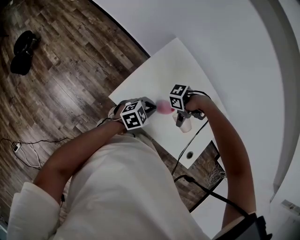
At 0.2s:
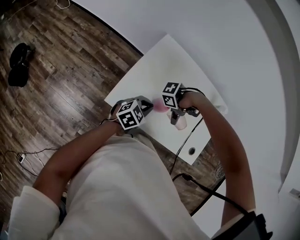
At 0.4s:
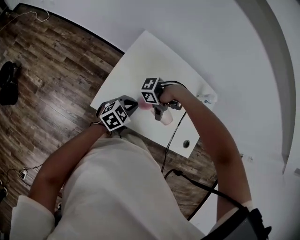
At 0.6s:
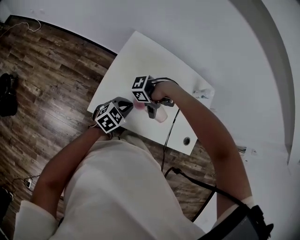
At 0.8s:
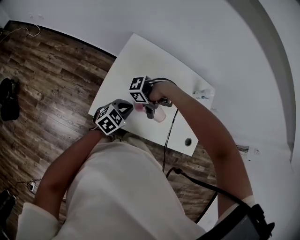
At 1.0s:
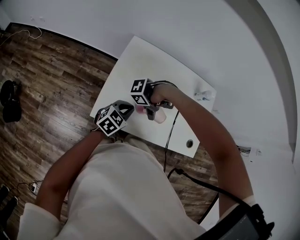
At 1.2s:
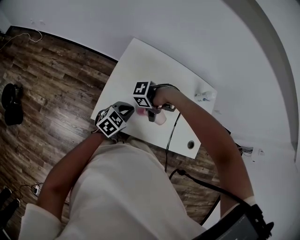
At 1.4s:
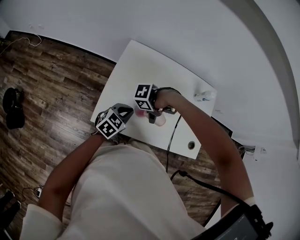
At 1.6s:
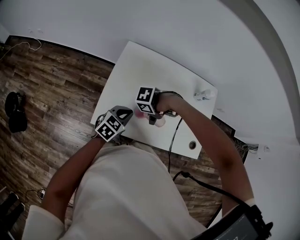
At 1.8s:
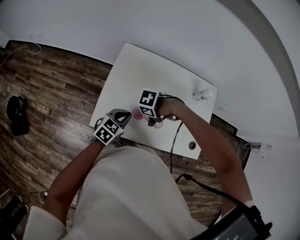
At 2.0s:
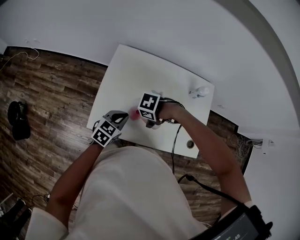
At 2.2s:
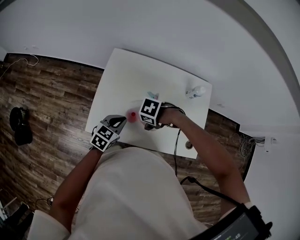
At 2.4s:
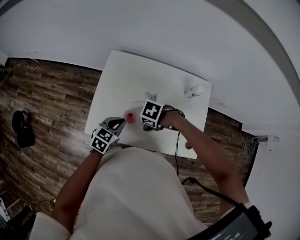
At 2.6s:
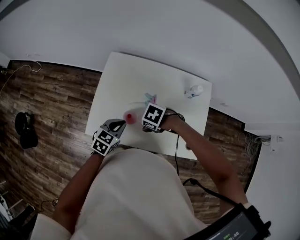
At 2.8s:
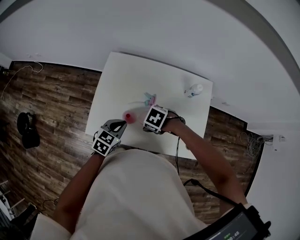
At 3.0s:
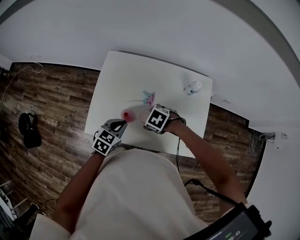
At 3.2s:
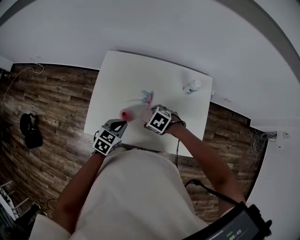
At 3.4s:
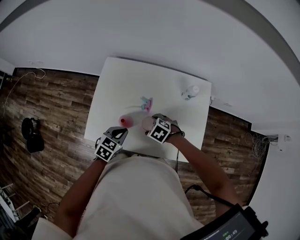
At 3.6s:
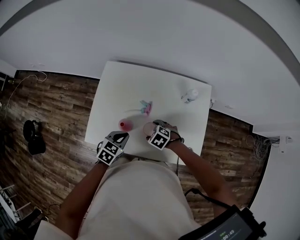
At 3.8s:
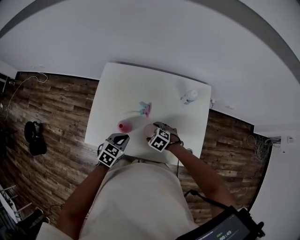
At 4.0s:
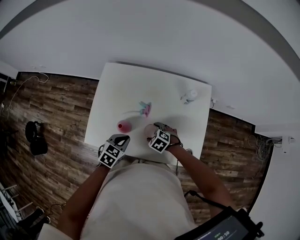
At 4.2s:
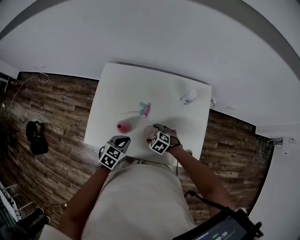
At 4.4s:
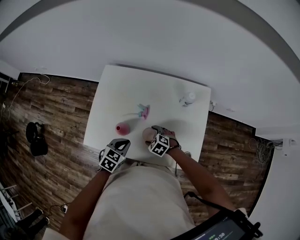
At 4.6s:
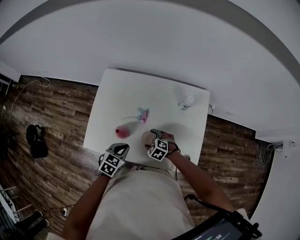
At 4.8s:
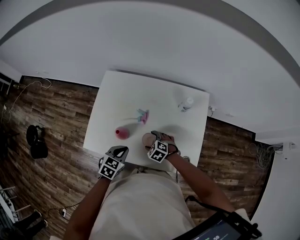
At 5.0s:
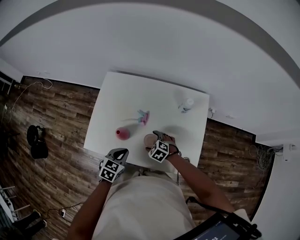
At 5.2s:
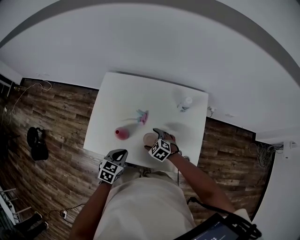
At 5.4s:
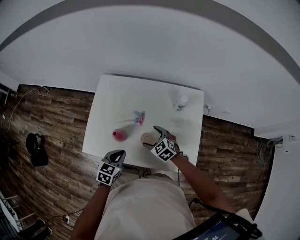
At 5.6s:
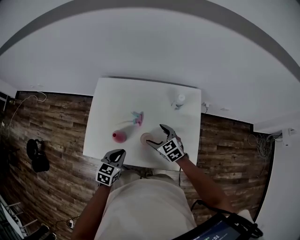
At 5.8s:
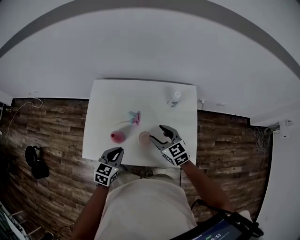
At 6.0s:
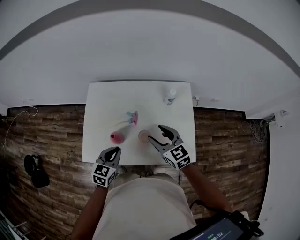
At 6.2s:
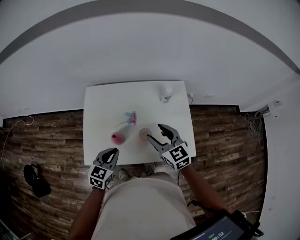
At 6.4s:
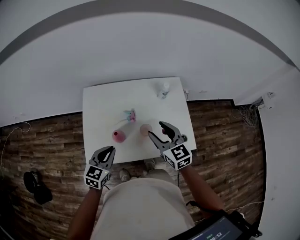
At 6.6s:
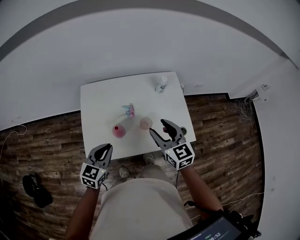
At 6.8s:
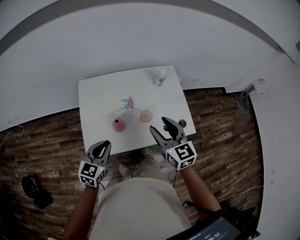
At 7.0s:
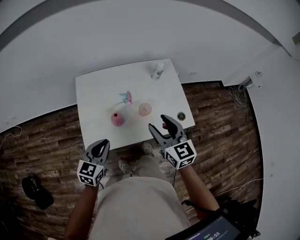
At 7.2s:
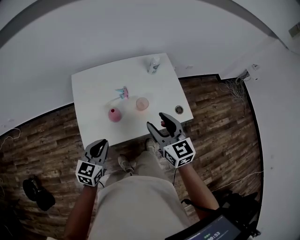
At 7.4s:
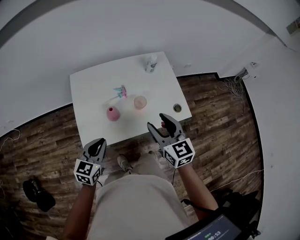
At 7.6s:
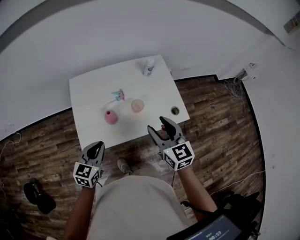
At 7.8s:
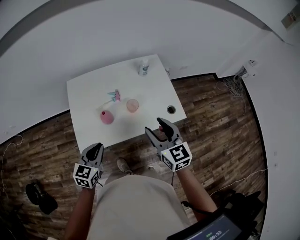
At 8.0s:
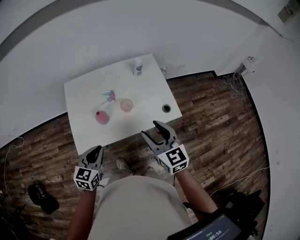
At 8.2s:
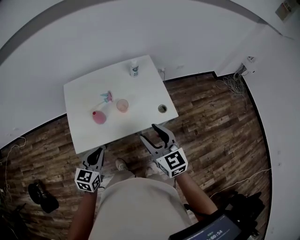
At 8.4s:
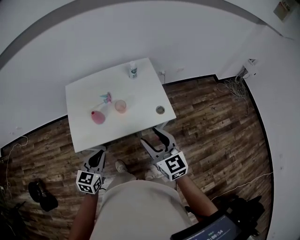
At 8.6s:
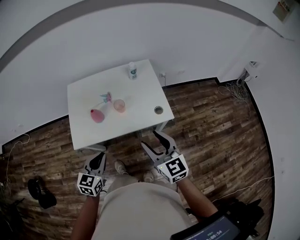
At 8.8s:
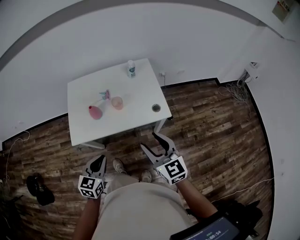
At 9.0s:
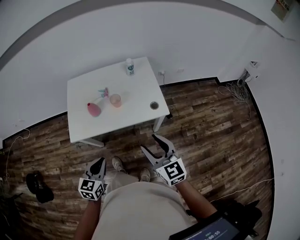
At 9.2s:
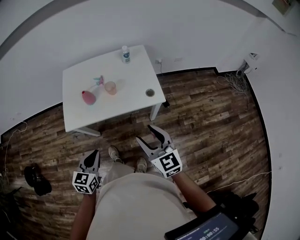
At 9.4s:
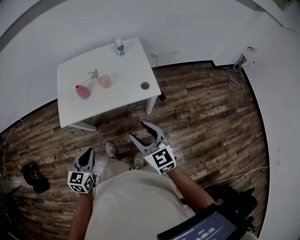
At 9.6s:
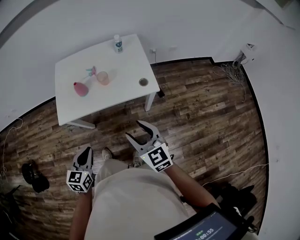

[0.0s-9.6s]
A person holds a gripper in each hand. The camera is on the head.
1.6s to 3.2s: The left gripper shifts by some 10 cm.
3.2s to 4.8s: The left gripper shifts by about 5 cm.
4.8s to 6.4s: The left gripper is displaced upward by roughly 10 cm, and rotates roughly 20 degrees.
6.4s to 8.0s: The left gripper moves some 15 cm.
8.0s to 9.6s: The left gripper changes place by about 25 cm.

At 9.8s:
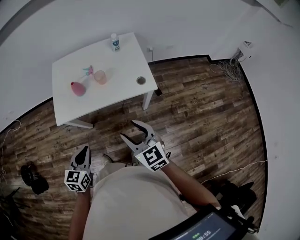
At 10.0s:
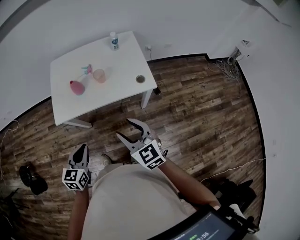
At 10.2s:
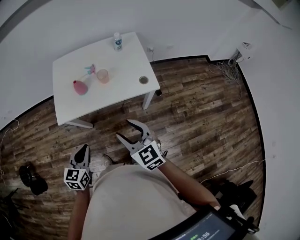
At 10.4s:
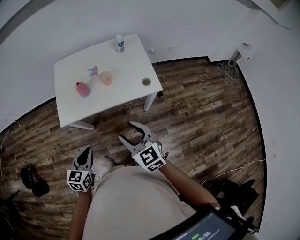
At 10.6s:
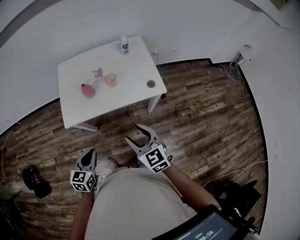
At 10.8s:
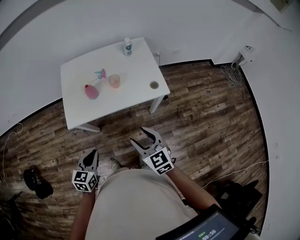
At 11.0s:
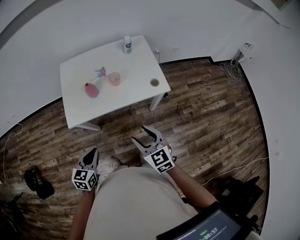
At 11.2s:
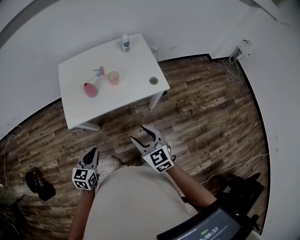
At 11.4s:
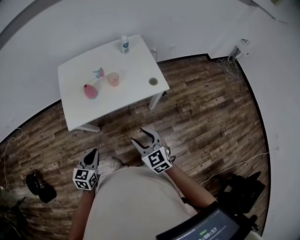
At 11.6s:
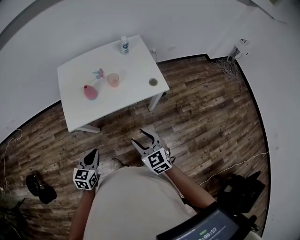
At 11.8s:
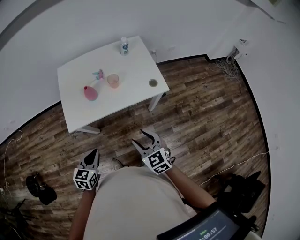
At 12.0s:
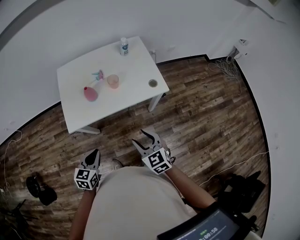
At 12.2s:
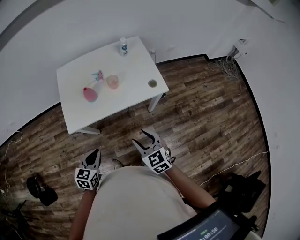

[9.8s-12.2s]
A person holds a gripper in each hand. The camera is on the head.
9.8s to 11.0s: The left gripper moves about 10 cm.

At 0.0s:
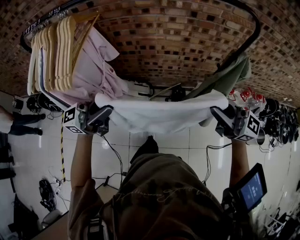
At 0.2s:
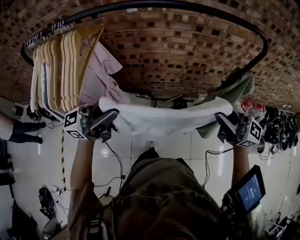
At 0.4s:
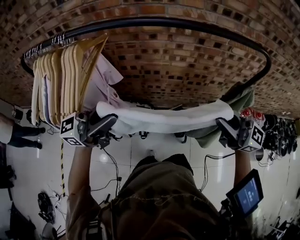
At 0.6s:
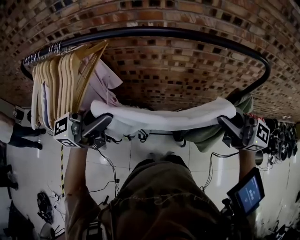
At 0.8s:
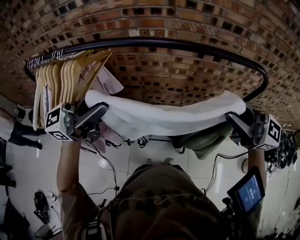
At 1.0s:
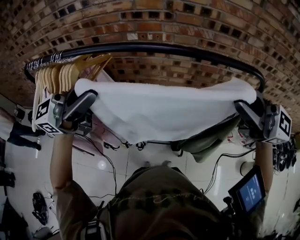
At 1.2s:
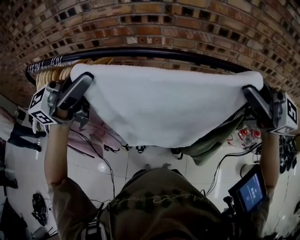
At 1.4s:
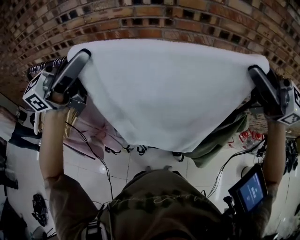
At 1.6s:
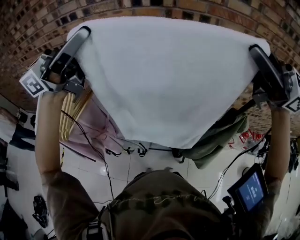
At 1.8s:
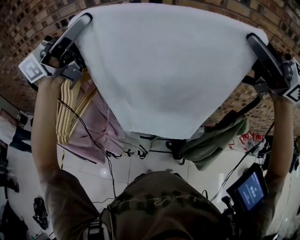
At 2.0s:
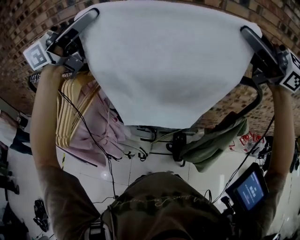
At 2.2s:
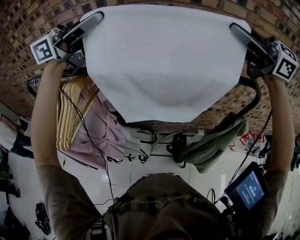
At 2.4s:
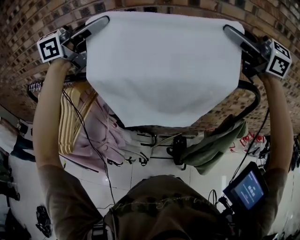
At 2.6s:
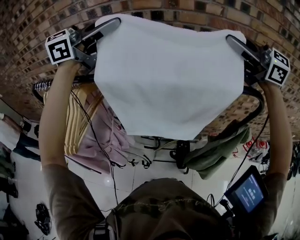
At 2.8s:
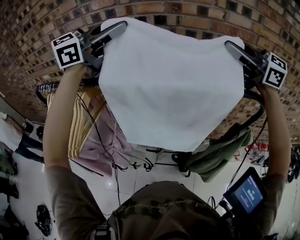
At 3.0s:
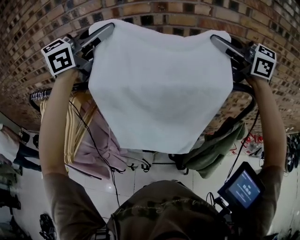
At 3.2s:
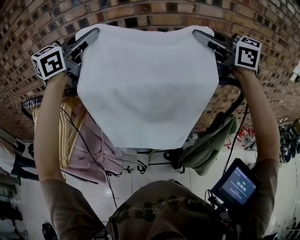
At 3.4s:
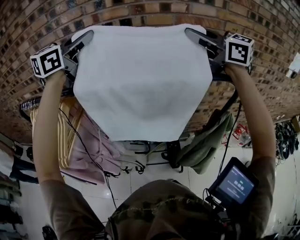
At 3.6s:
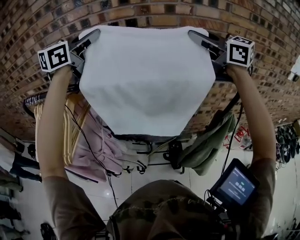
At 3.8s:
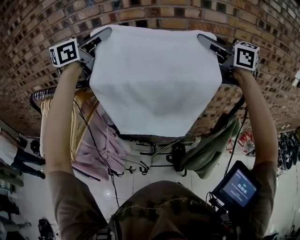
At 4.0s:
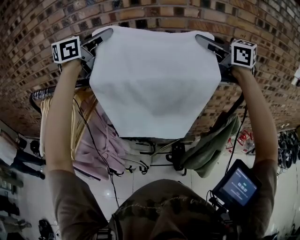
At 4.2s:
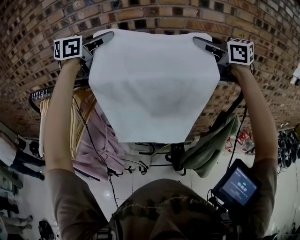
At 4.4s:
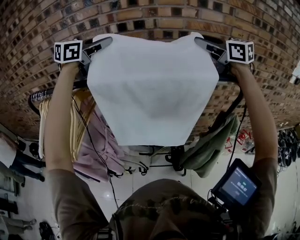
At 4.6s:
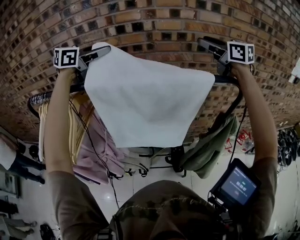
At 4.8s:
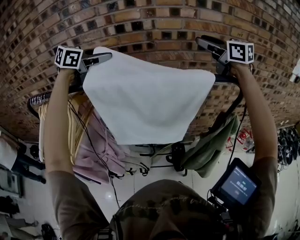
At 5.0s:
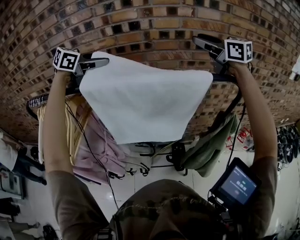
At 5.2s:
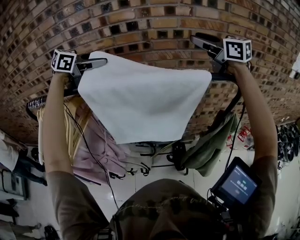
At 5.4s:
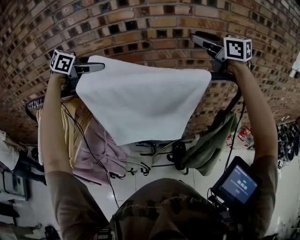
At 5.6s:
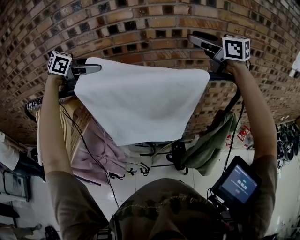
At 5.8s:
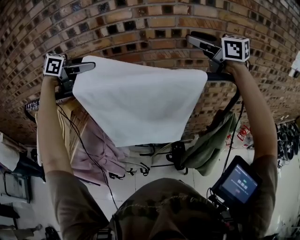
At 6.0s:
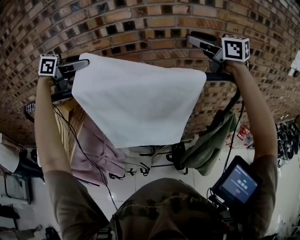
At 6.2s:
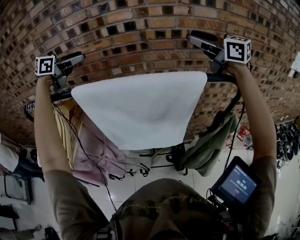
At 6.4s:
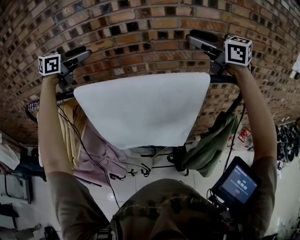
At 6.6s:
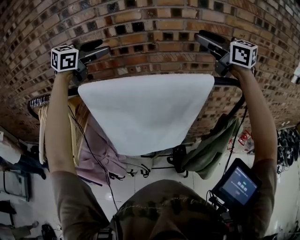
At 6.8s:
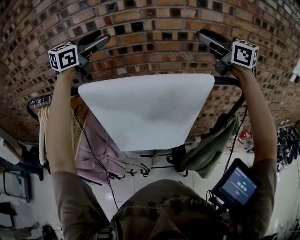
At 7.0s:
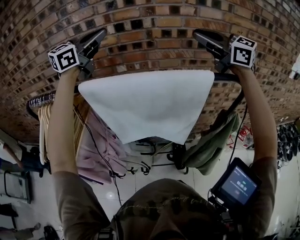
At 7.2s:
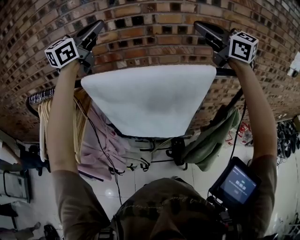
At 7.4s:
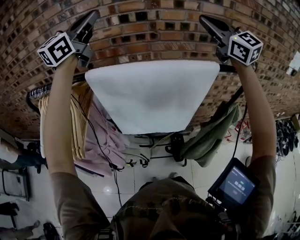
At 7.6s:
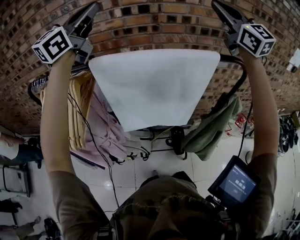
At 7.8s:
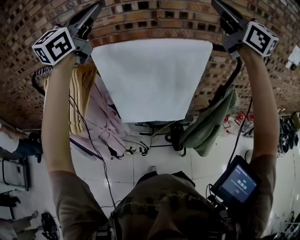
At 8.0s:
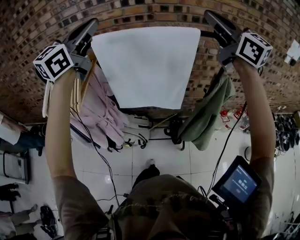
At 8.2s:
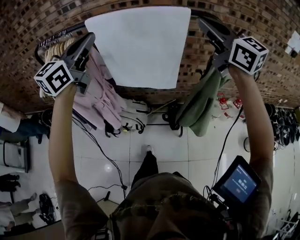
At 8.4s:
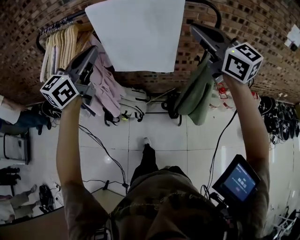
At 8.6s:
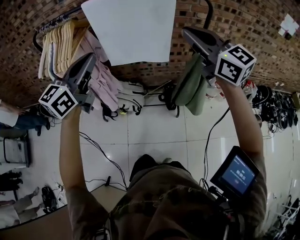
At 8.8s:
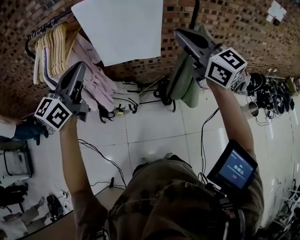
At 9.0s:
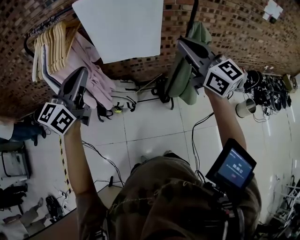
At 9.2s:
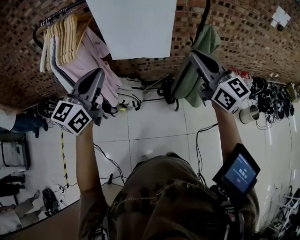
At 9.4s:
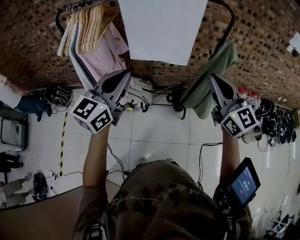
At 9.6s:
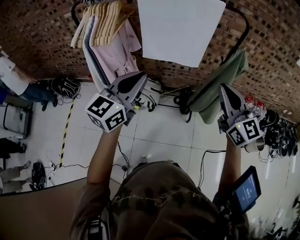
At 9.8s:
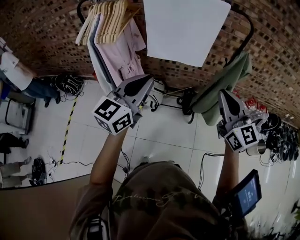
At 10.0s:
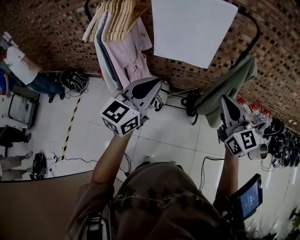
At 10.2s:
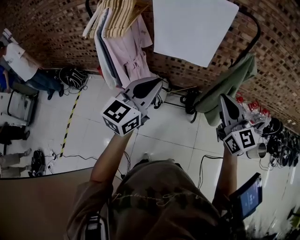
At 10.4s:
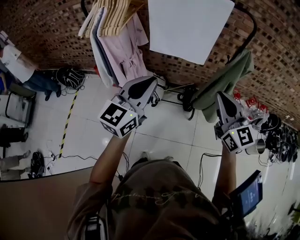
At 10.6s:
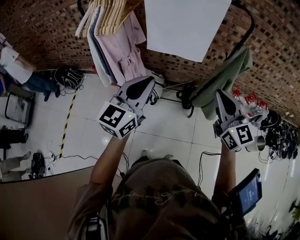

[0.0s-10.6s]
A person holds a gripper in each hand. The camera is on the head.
0.0s to 1.6s: The grippers both shift upward by some 30 cm.
1.6s to 3.0s: The right gripper moves about 15 cm. The left gripper changes place by approximately 15 cm, and turns by approximately 30 degrees.
3.0s to 4.6s: The right gripper heads forward and to the right, covering about 10 cm, changes its angle by approximately 30 degrees, and opens. Meanwhile the left gripper moves downward and forward, roughly 10 cm, swivels approximately 20 degrees, and opens.
4.6s to 6.0s: The left gripper ends up some 5 cm from where it was, and opens up.
6.0s to 7.6s: Both grippers move upward and backward, approximately 15 cm. The left gripper points its fingers roughly 40 degrees further upward, and closes. The right gripper changes its angle by about 40 degrees, and closes.
7.6s to 9.0s: The two grippers travel together, backward, about 40 cm. Both grippers travel together downward, roughly 25 cm. The right gripper swivels some 30 degrees, while the left gripper swivels some 20 degrees.
9.0s to 10.6s: The right gripper shifts about 15 cm downward and backward, while the left gripper shifts approximately 10 cm backward and downward.

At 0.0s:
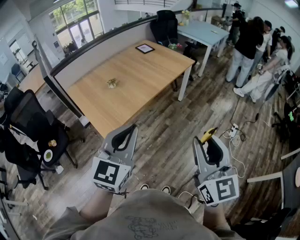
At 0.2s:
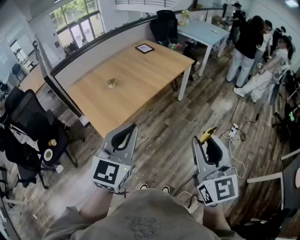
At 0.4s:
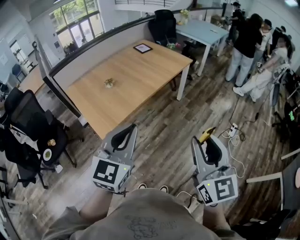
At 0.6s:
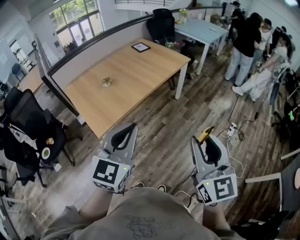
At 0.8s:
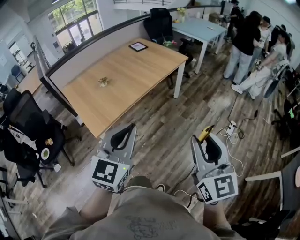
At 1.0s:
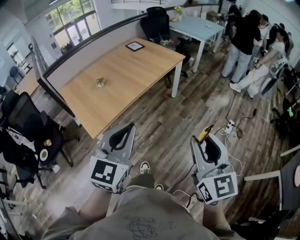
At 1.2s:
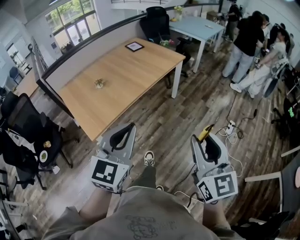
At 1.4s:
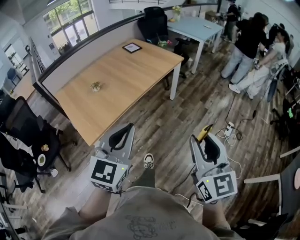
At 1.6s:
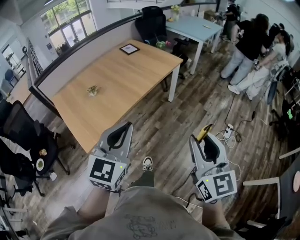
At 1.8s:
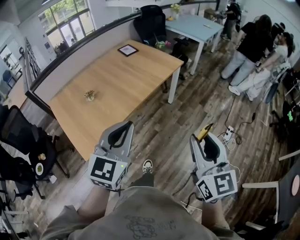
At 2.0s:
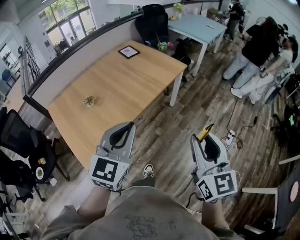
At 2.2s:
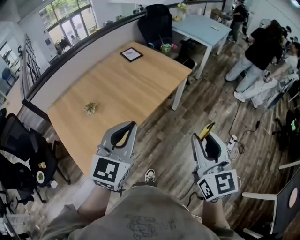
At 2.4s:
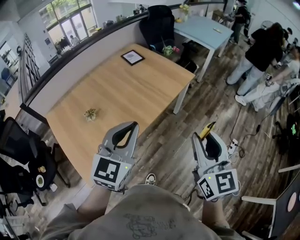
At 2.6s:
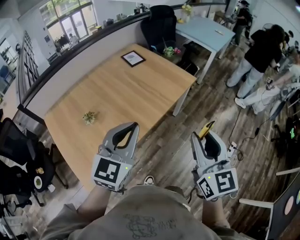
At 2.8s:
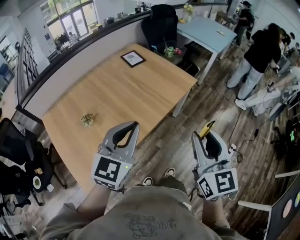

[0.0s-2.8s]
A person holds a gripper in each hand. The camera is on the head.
0.0s to 1.4s: Both grippers travel together to the right and forward, some 15 cm.
1.4s to 2.8s: The grippers both shift forward by approximately 40 cm.
